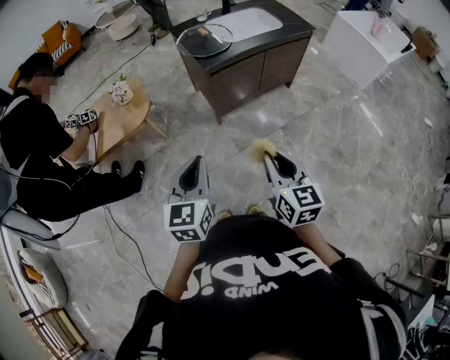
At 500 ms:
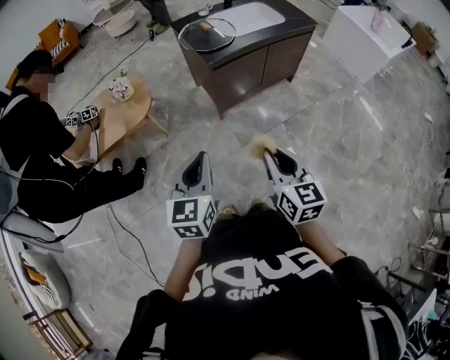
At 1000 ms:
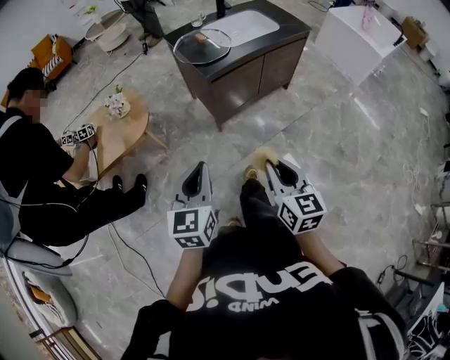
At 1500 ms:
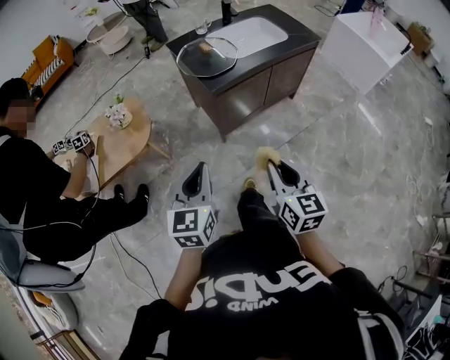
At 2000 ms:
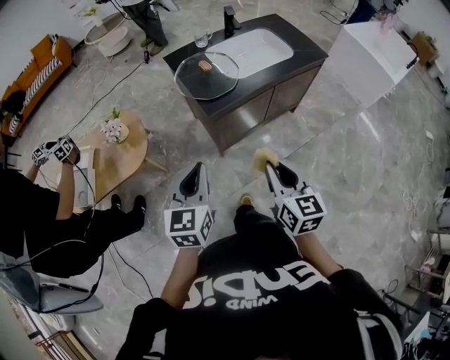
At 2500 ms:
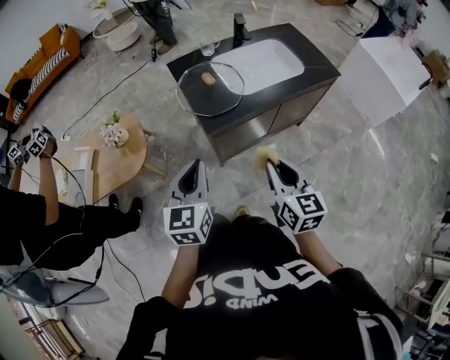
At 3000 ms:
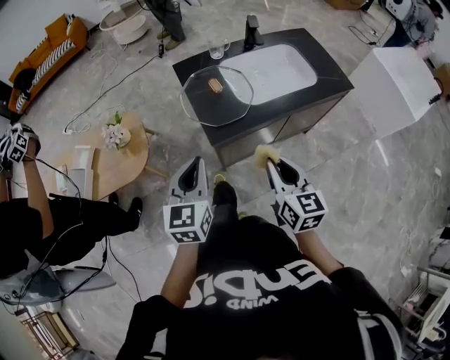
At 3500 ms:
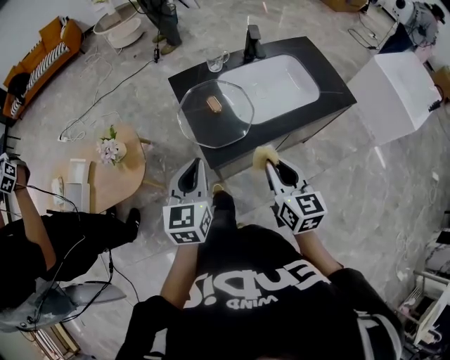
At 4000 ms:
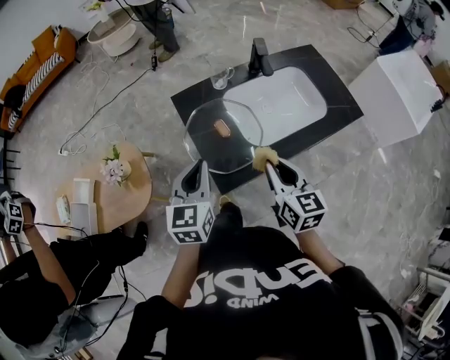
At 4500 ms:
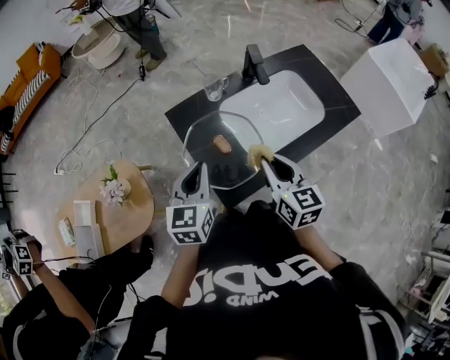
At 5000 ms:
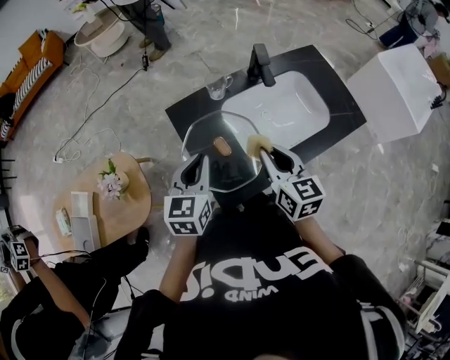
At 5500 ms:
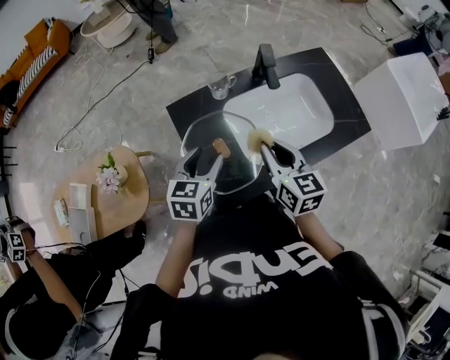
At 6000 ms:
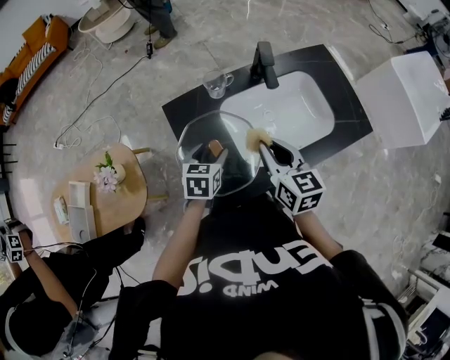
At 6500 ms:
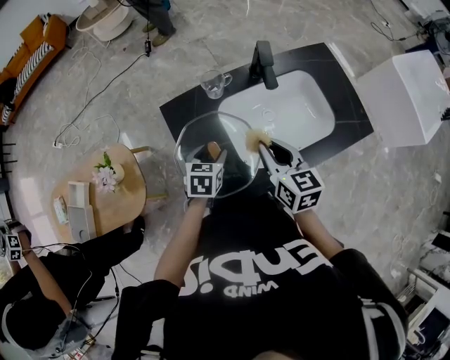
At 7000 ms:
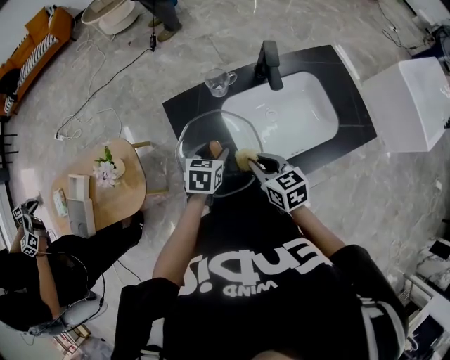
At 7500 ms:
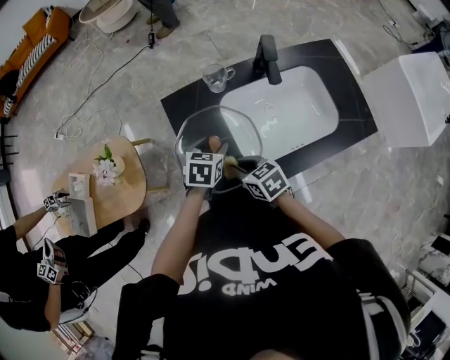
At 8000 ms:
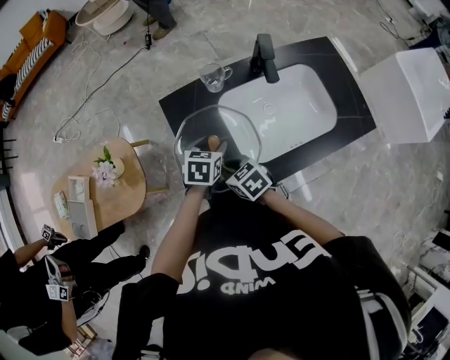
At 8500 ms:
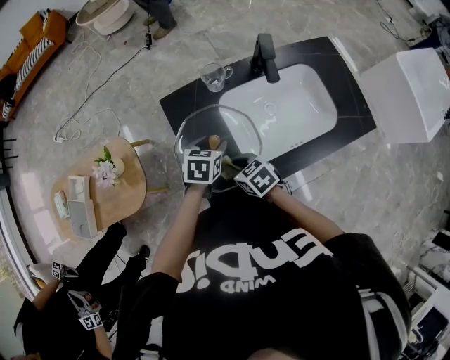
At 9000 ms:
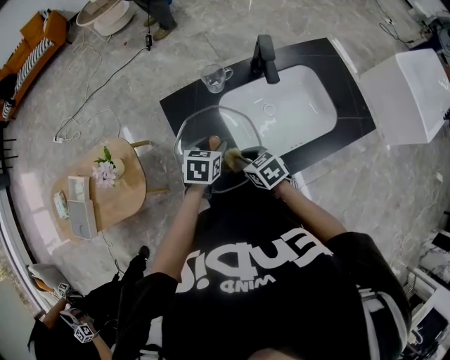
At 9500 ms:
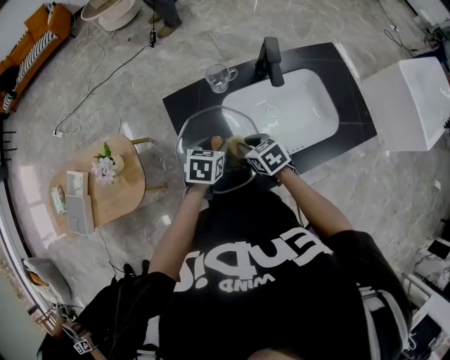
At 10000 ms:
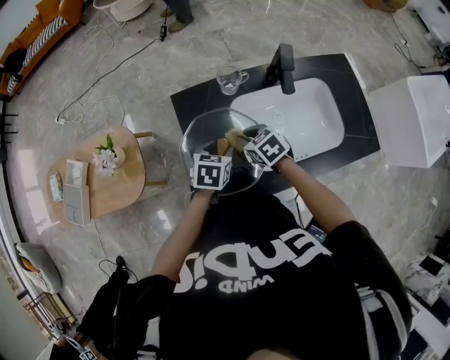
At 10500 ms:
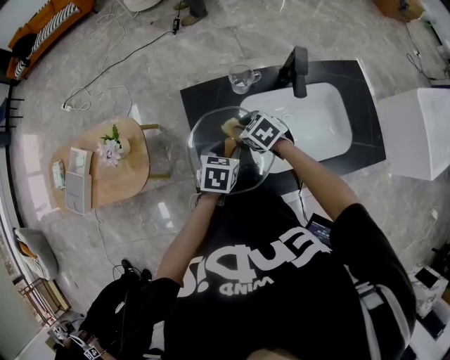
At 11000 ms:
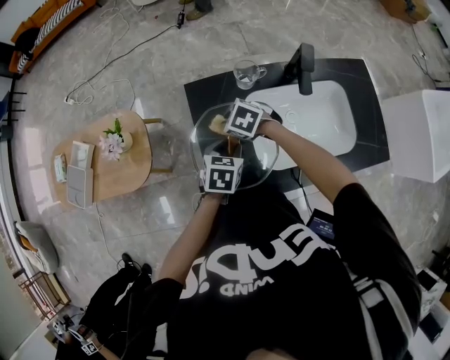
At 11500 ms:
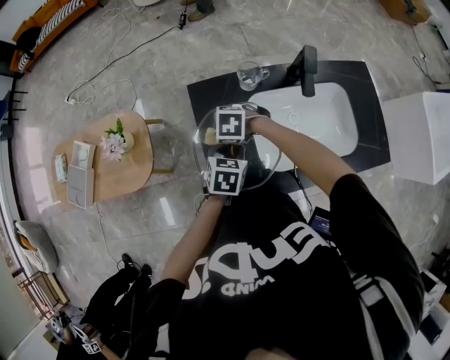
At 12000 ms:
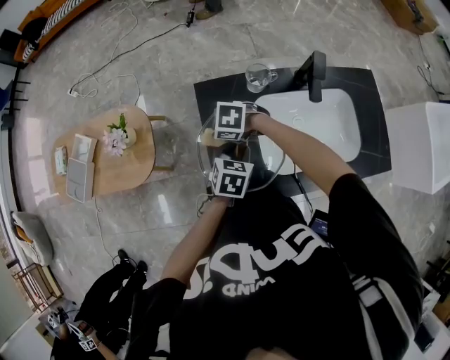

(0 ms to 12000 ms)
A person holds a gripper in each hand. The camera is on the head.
0 ms - 2000 ms: Both grippers travel together forward, some 25 cm.
2000 ms - 4000 ms: Both grippers travel together forward, some 35 cm.
4000 ms - 6000 ms: The left gripper shifts roughly 20 cm forward and downward, rotates about 30 degrees, and opens, while the right gripper heads forward, covering approximately 15 cm.
6000 ms - 8000 ms: The right gripper goes some 20 cm downward and to the left, and rotates approximately 40 degrees.
8000 ms - 10000 ms: The right gripper moves forward and to the right, some 10 cm.
10000 ms - 12000 ms: The right gripper moves about 15 cm, and rotates about 50 degrees.

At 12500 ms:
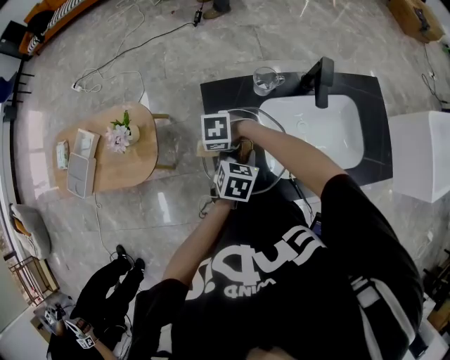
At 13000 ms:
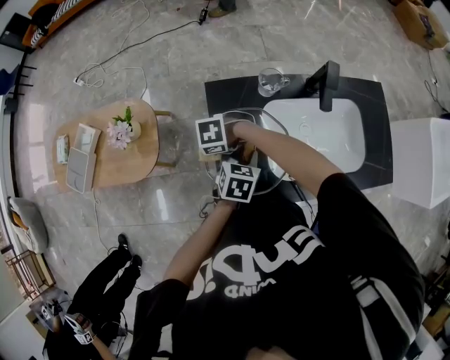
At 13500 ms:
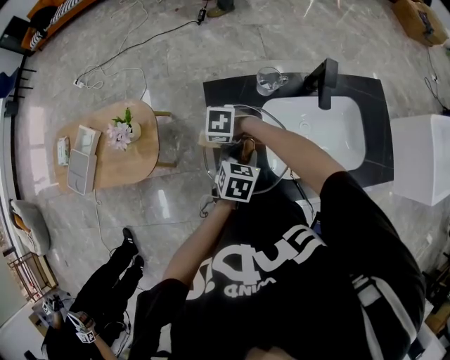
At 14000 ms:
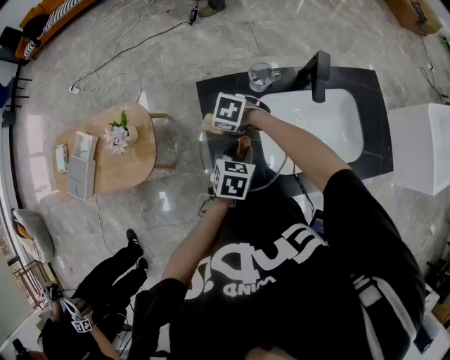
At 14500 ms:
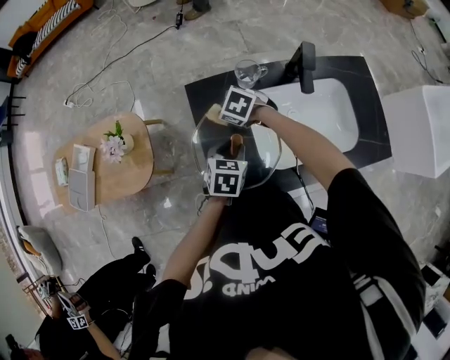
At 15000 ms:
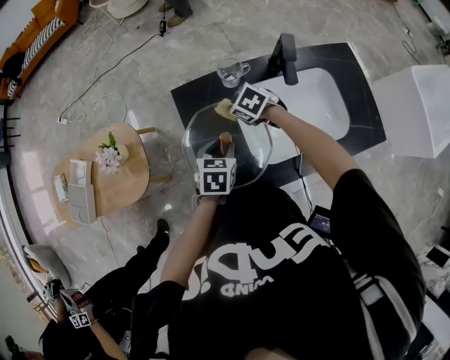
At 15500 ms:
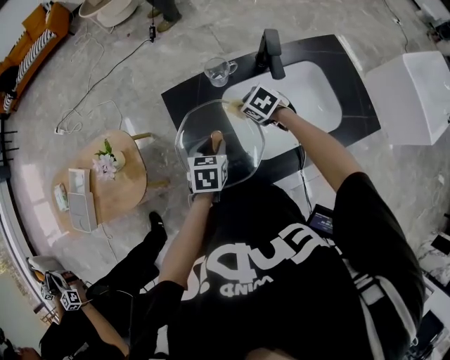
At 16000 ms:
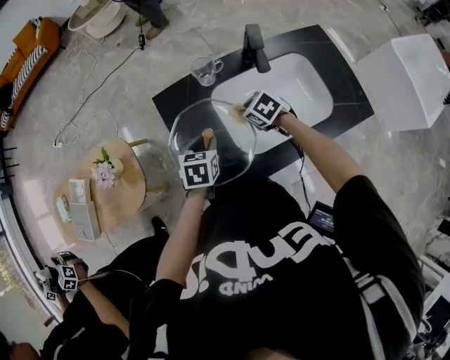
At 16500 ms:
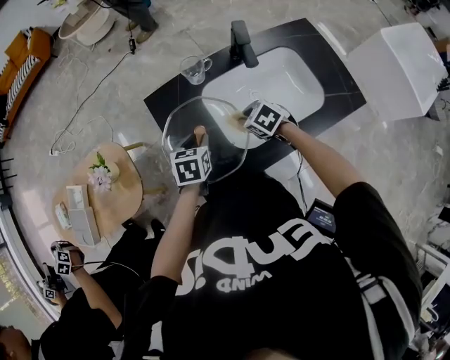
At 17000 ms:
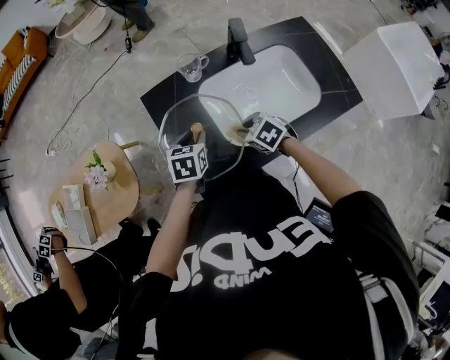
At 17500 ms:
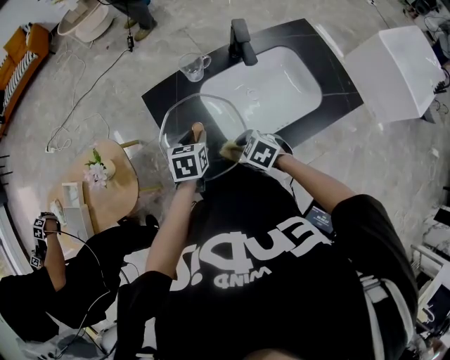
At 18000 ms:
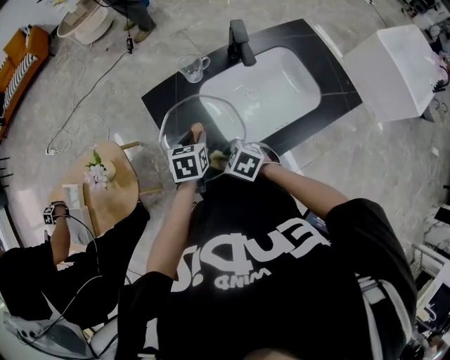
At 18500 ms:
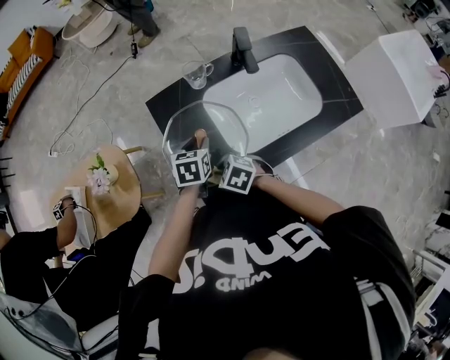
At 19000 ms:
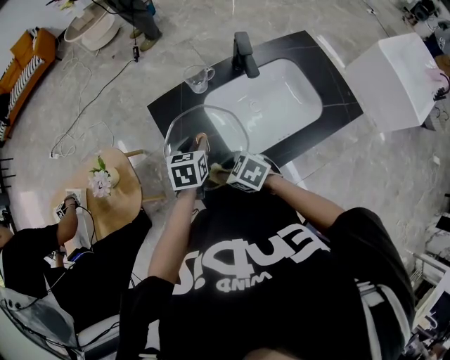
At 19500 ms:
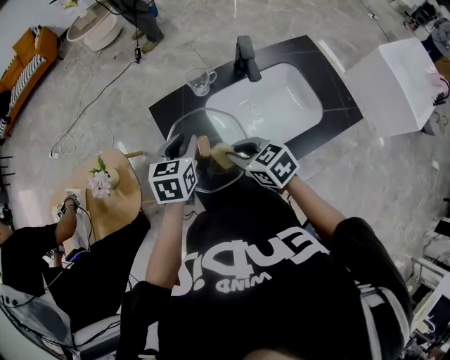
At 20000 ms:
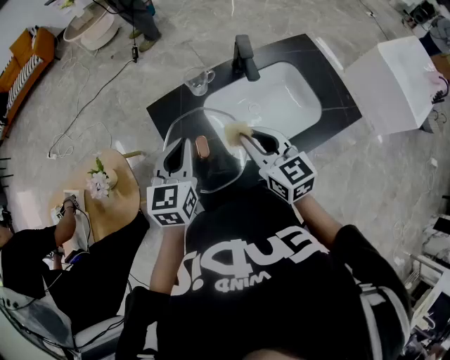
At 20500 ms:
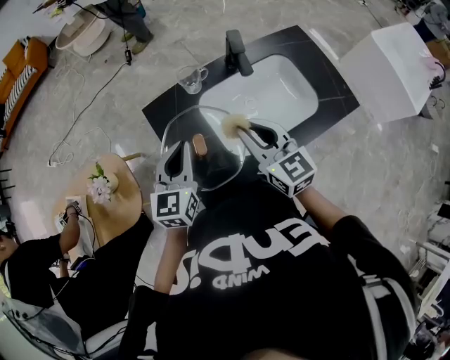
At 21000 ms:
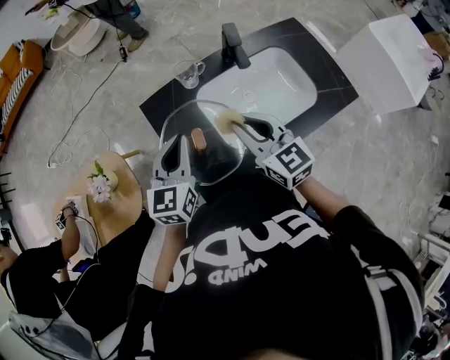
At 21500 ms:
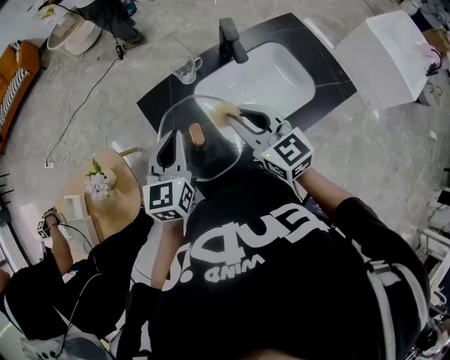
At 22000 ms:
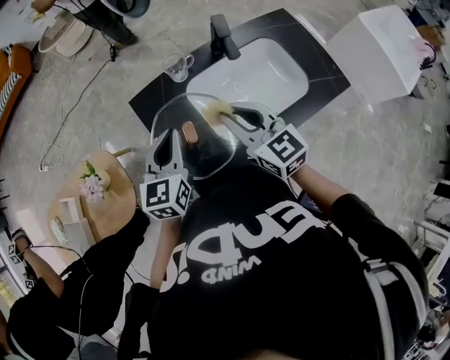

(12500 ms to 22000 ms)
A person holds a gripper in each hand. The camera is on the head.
12500 ms - 14500 ms: The right gripper moves about 15 cm, and rotates some 30 degrees.
14500 ms - 16500 ms: The right gripper travels to the right and backward by roughly 20 cm, and turns by some 30 degrees.
16500 ms - 18000 ms: The right gripper heads to the left and backward, covering about 15 cm.
18000 ms - 20000 ms: The right gripper travels upward and to the right by roughly 20 cm, and points its fingers approximately 40 degrees further upward. The left gripper goes roughly 15 cm upward, swivels approximately 30 degrees, and closes its fingers.
20000 ms - 22000 ms: The grippers make only small movements.

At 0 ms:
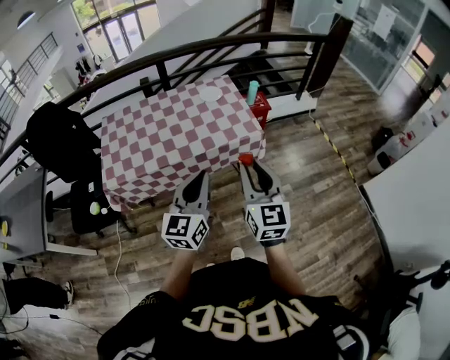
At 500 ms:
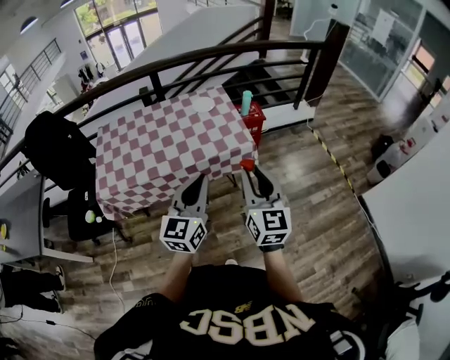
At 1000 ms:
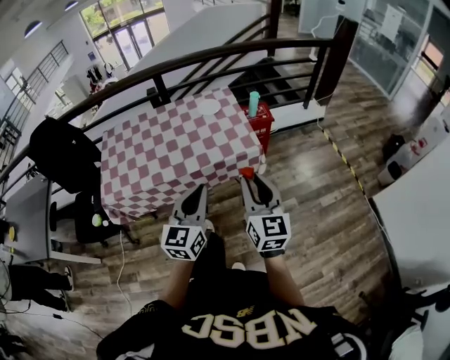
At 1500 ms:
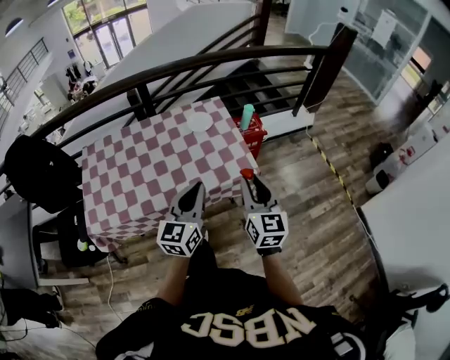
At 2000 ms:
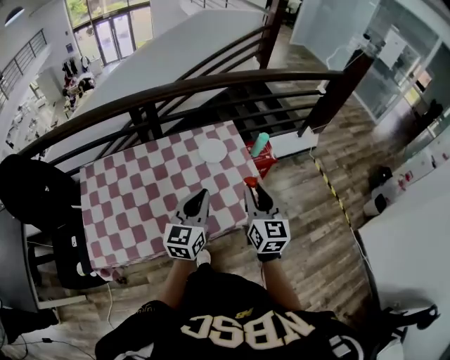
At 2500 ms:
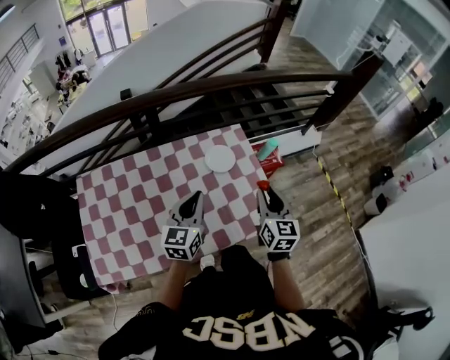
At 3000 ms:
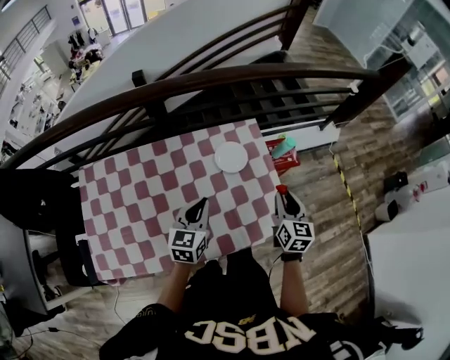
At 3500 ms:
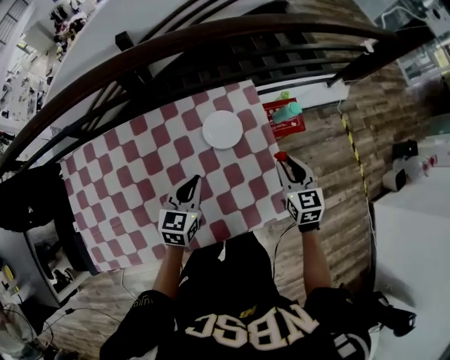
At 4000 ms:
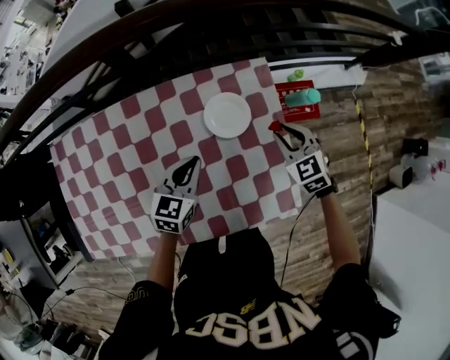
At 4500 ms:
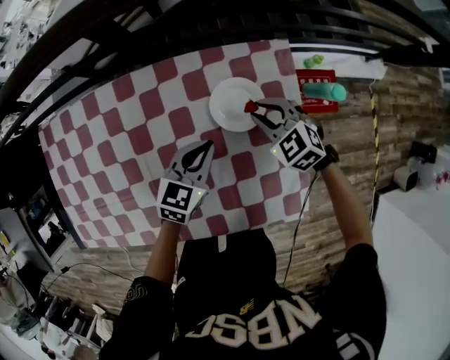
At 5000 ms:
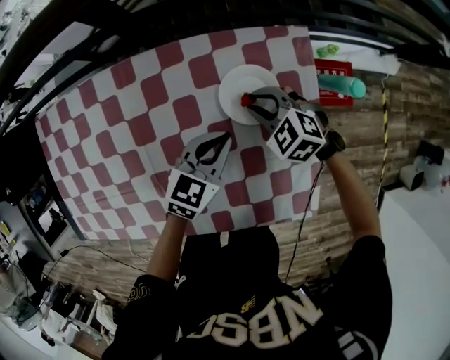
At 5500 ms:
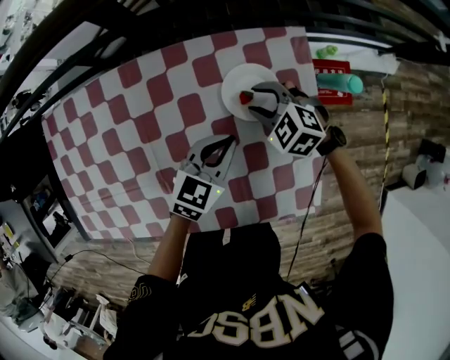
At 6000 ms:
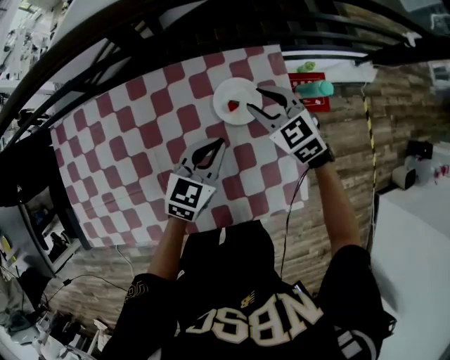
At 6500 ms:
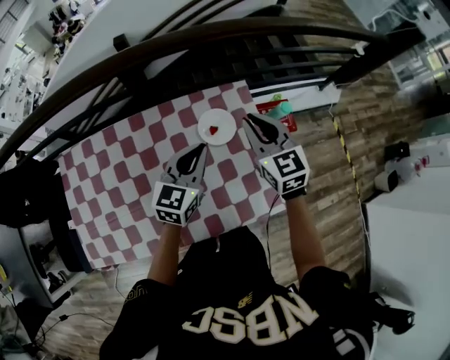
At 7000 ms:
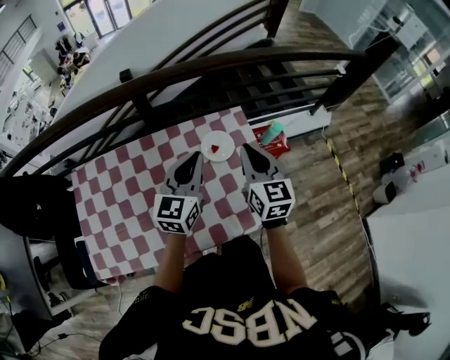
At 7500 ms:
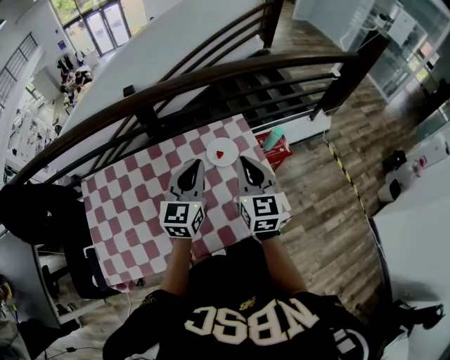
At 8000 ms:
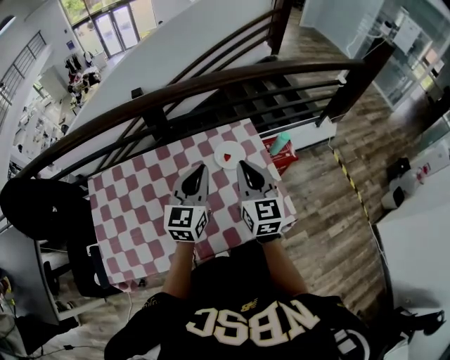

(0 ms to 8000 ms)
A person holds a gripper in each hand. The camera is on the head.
0 ms - 2000 ms: Both grippers travel together forward, approximately 35 cm.
2000 ms - 4000 ms: The left gripper heads downward and forward, covering roughly 30 cm, and swivels roughly 30 degrees. The right gripper shifts some 35 cm forward and downward, and tips its fingers downward by roughly 30 degrees.
4000 ms - 6000 ms: The right gripper travels to the left and forward by approximately 10 cm; the left gripper travels downward and back again, roughly 5 cm each way.
6000 ms - 8000 ms: The right gripper goes about 30 cm upward and backward, tips its fingers upward by approximately 30 degrees, and closes up; the left gripper goes roughly 20 cm upward, and swivels approximately 30 degrees.
